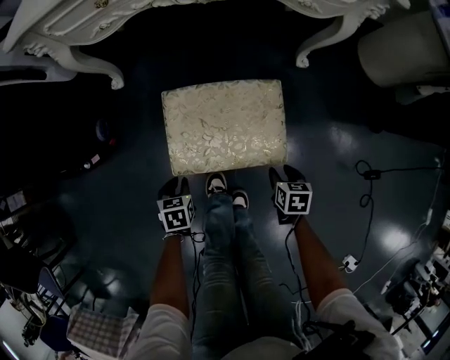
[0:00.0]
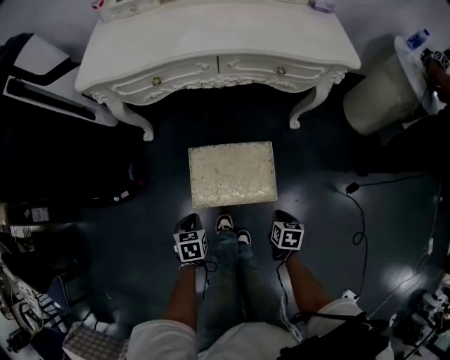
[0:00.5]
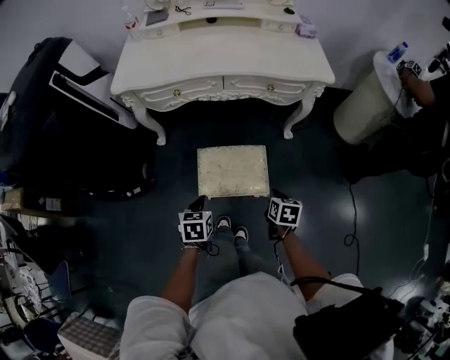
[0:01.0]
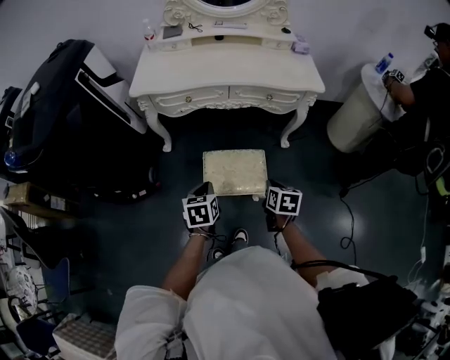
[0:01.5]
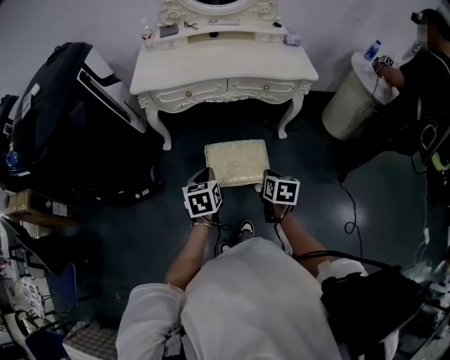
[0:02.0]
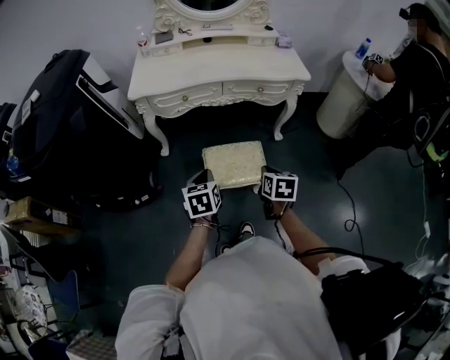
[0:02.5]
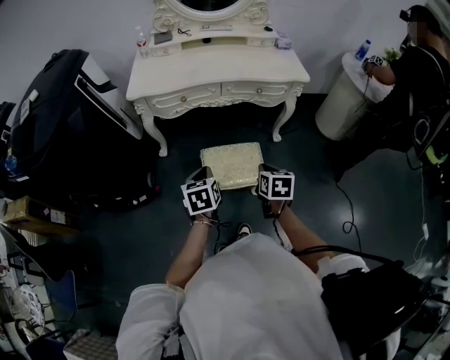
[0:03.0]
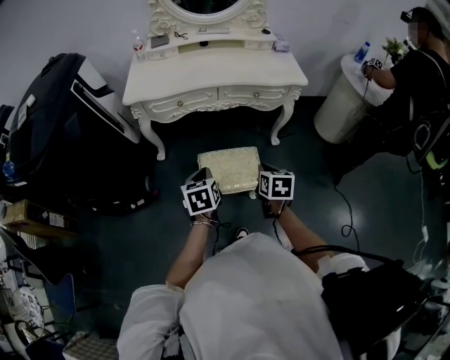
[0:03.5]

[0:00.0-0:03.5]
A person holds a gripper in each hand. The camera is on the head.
0:00.0 to 0:02.0: Both grippers travel together upward, approximately 50 cm. The left gripper changes its angle by approximately 30 degrees. Meanwhile the right gripper closes up.
0:02.0 to 0:03.5: There are only small adjustments of the grippers.

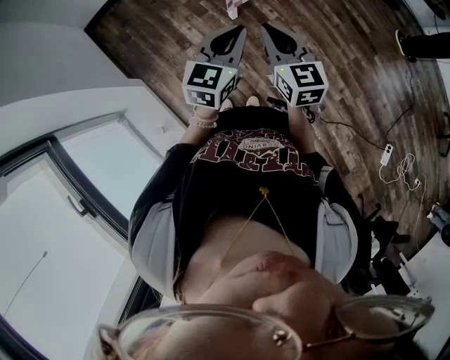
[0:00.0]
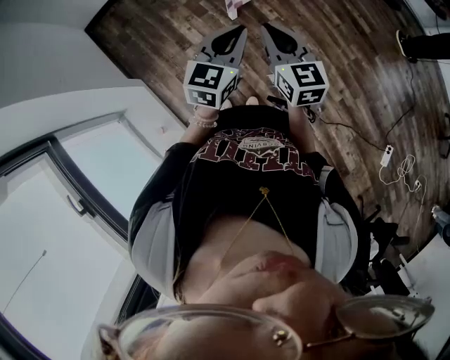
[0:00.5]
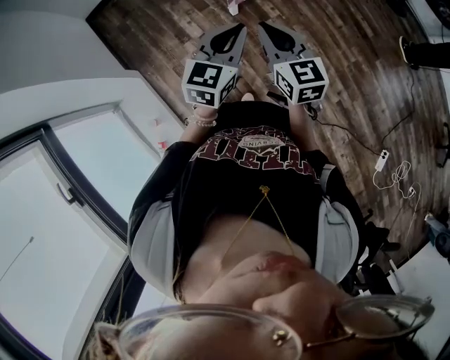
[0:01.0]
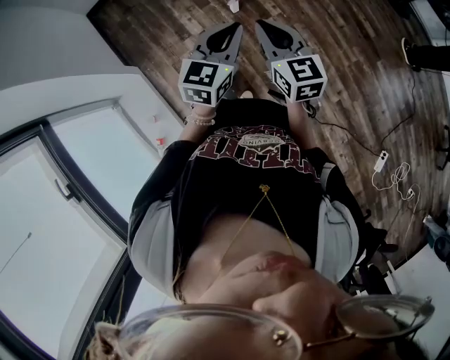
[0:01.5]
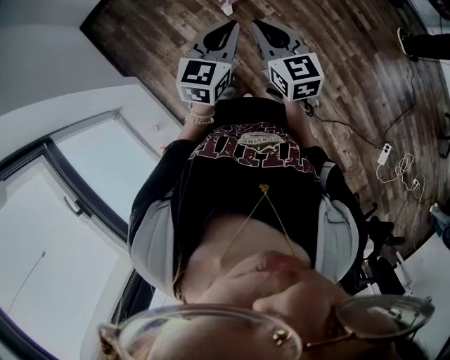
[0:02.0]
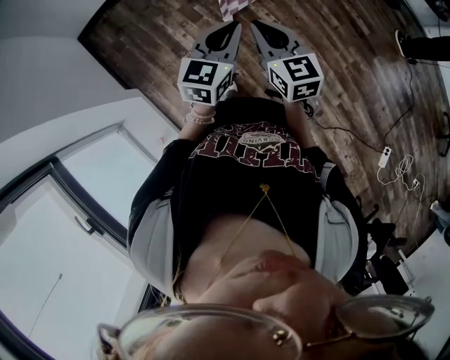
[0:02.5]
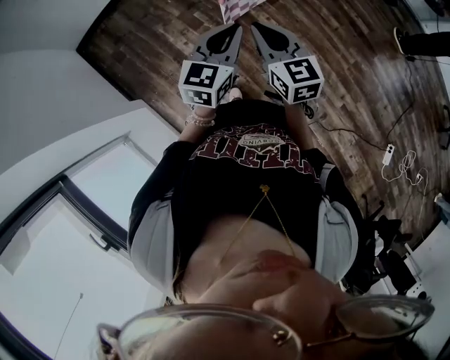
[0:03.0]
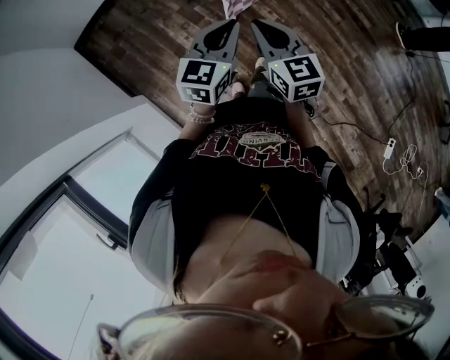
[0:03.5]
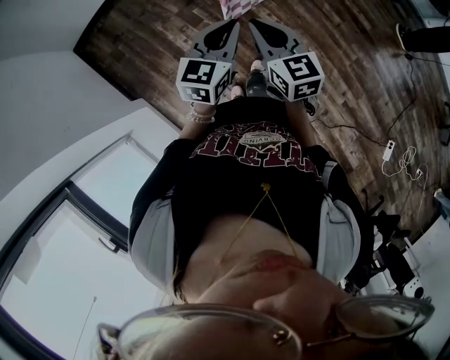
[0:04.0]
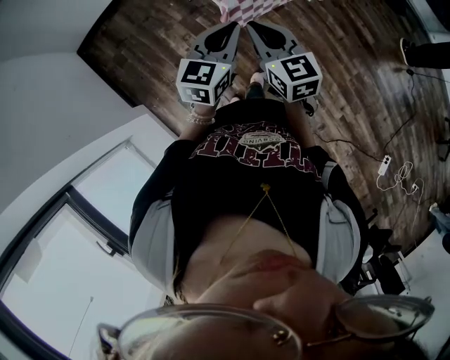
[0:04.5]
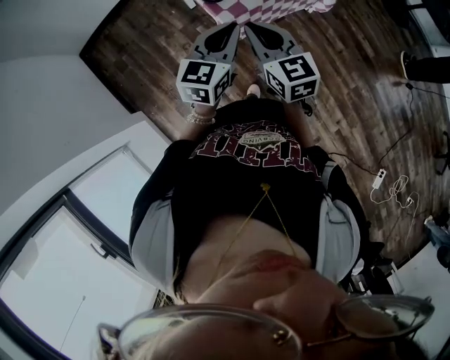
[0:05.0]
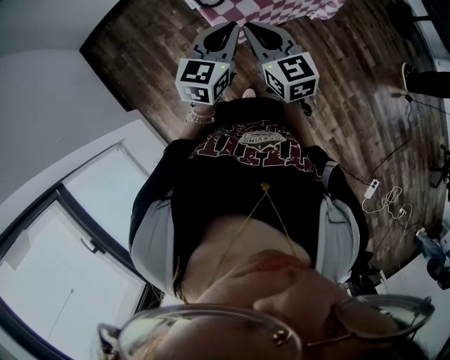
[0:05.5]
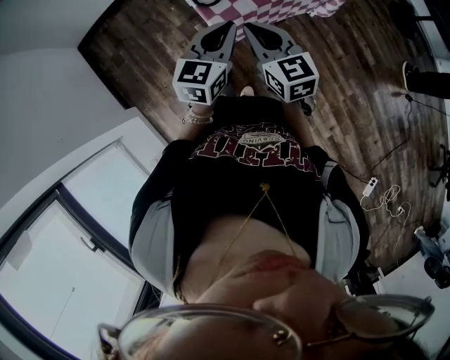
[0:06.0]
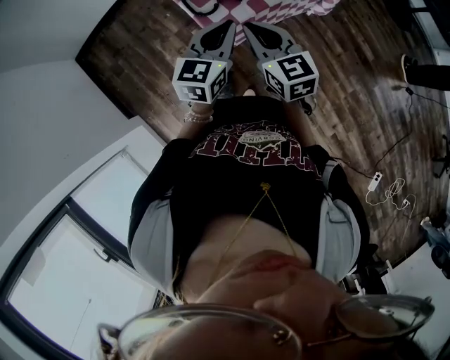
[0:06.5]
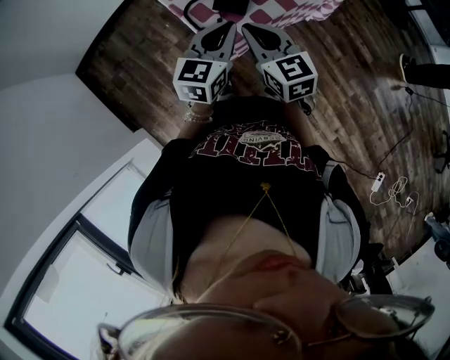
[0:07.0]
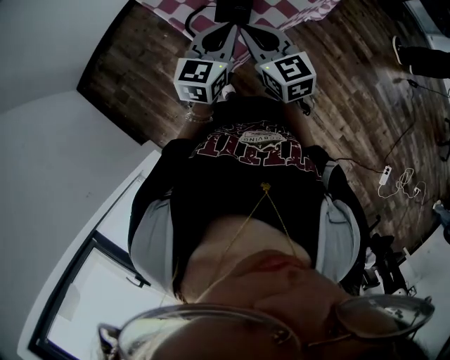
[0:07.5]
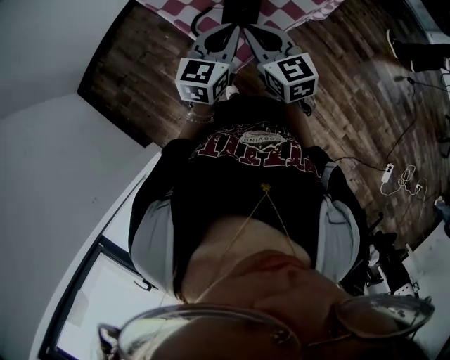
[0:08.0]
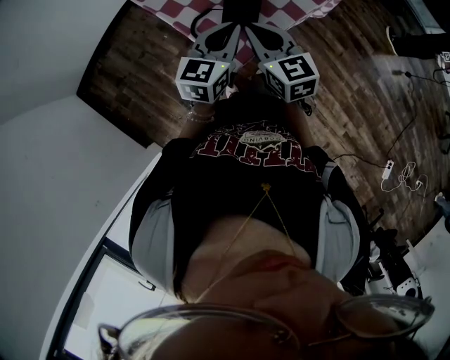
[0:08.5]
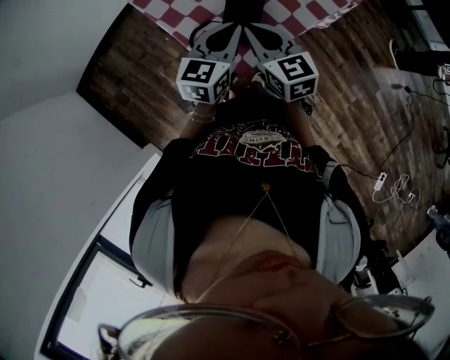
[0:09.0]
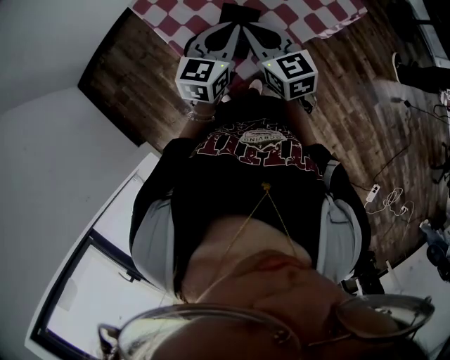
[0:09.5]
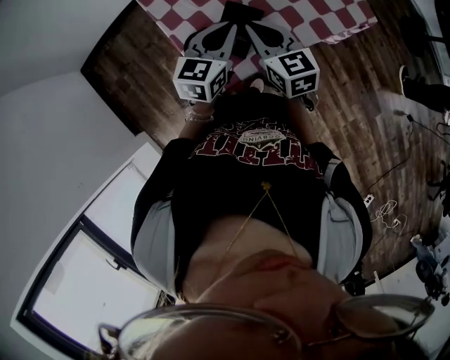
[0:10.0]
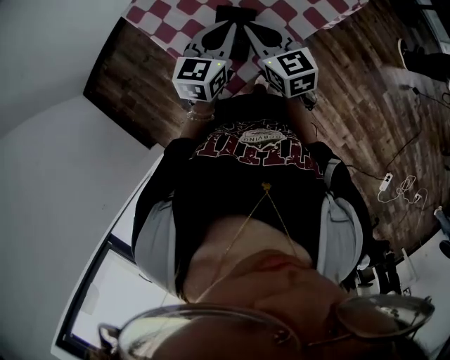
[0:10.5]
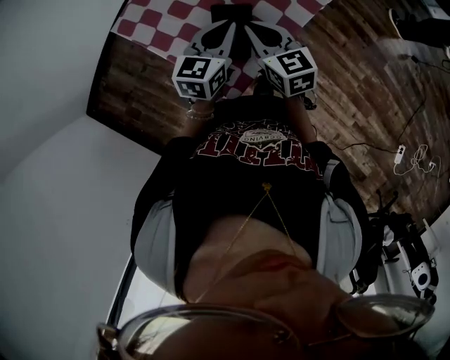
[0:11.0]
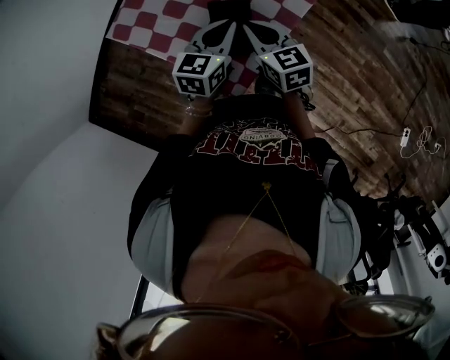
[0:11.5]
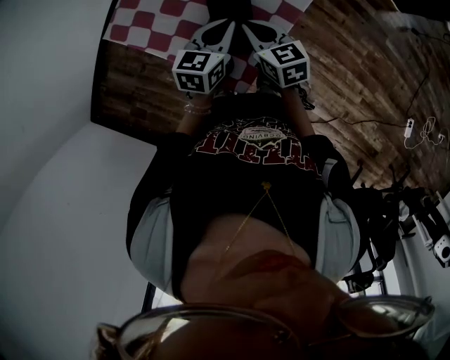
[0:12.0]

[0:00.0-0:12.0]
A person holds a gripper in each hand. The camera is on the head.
0:00.0 to 0:02.0: The grippers stay close to where they were, moving slightly.
0:02.0 to 0:04.0: The two grippers go about 20 cm forward and to the left.
0:04.0 to 0:06.0: The grippers both shift forward and to the right by some 20 cm.
0:06.0 to 0:08.0: Both grippers move forward, approximately 15 cm.
0:08.0 to 0:10.0: Both grippers travel together forward, about 10 cm.
0:10.0 to 0:12.0: Both grippers travel together downward, roughly 10 cm. The right gripper swivels approximately 30 degrees. The left gripper changes its angle by some 30 degrees.

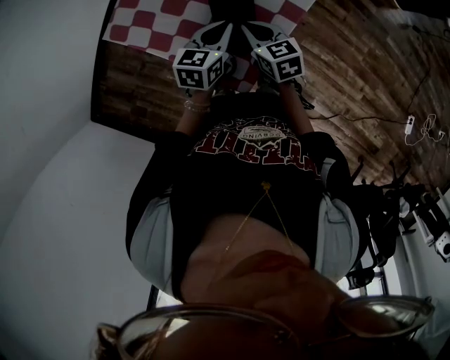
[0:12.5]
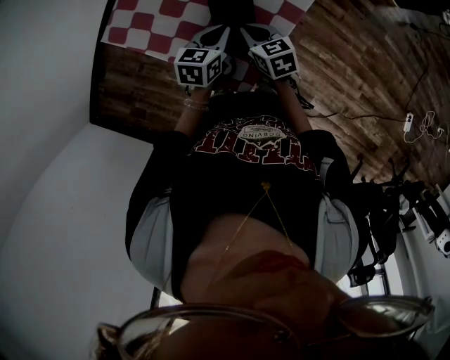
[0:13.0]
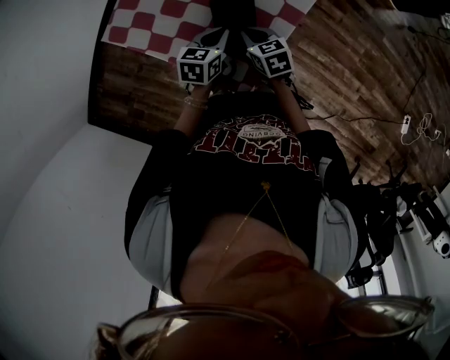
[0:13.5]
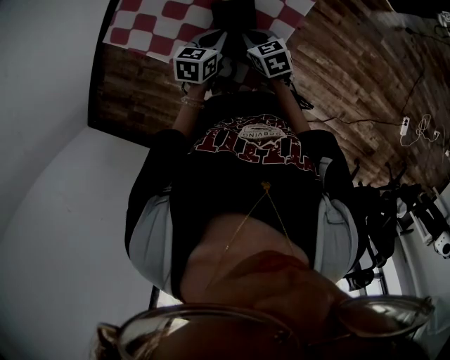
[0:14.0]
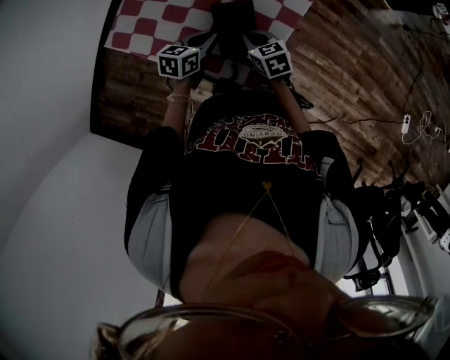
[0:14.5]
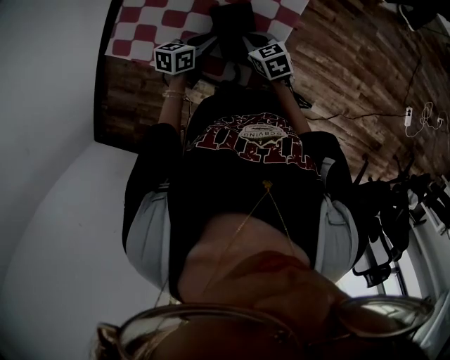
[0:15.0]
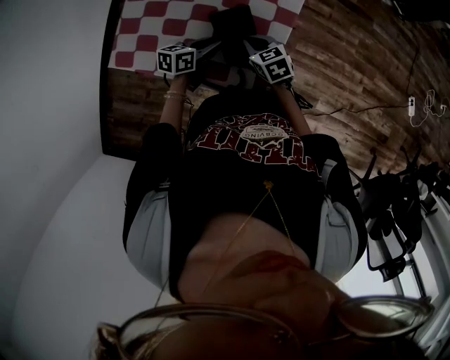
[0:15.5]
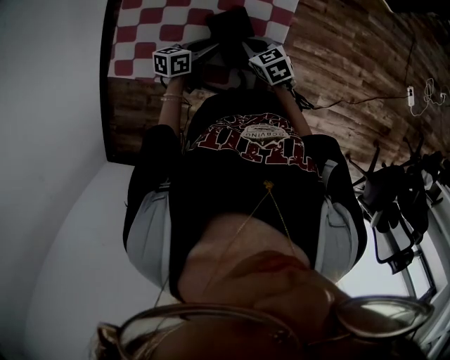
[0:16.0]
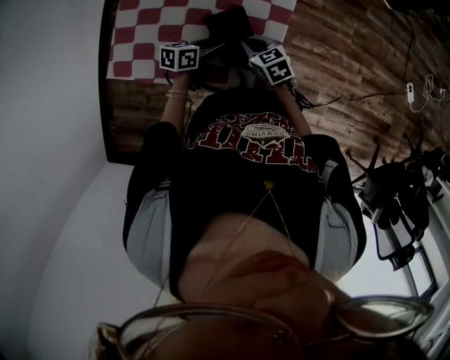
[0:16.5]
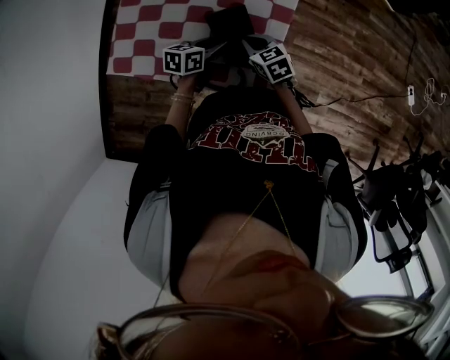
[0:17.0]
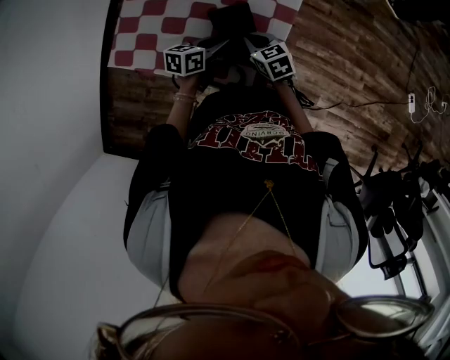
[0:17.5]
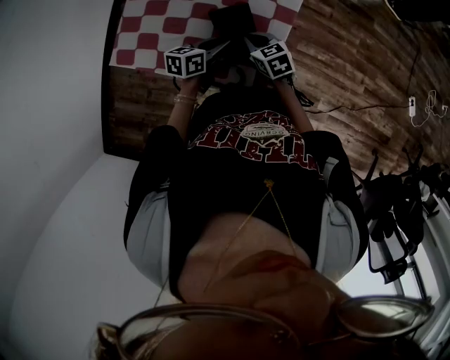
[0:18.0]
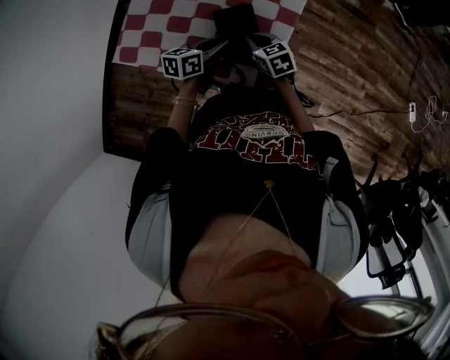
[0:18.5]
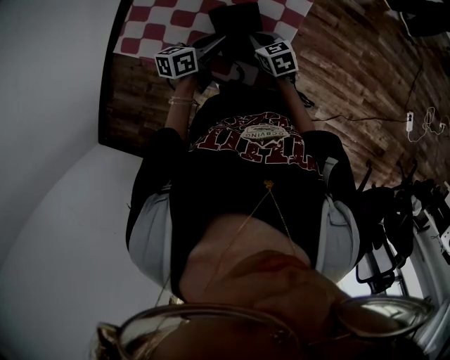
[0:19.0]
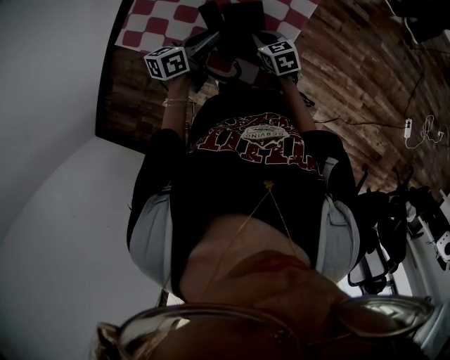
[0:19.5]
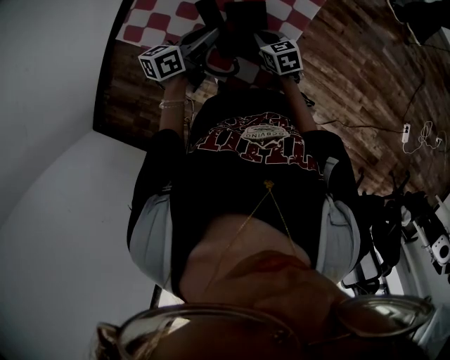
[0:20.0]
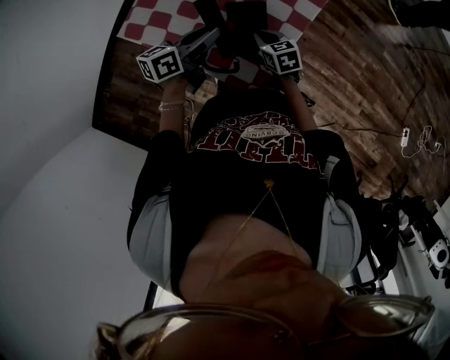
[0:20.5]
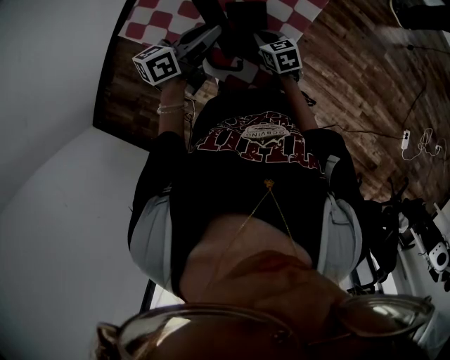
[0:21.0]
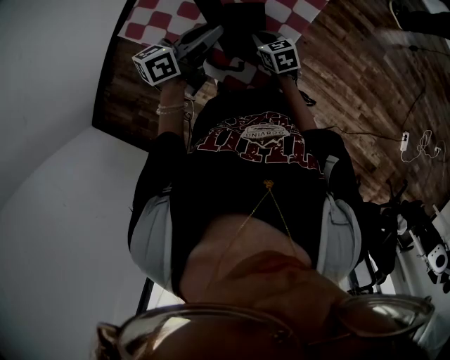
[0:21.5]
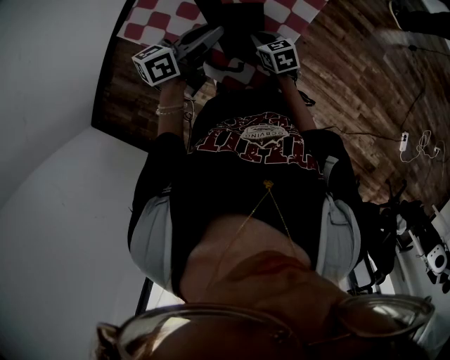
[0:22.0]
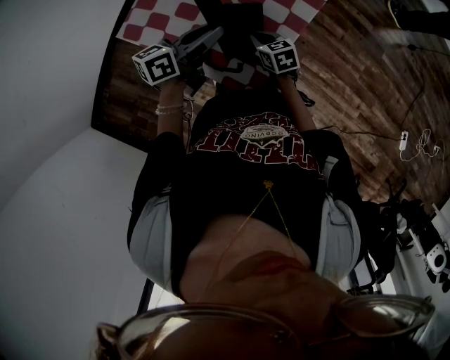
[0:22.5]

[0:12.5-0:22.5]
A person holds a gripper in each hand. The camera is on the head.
0:12.5 to 0:14.5: Both grippers travel together downward, approximately 5 cm.
0:14.5 to 0:16.5: The left gripper swivels roughly 20 degrees, and opens its fingers.
0:16.5 to 0:18.5: The left gripper is displaced upward by roughly 5 cm.
0:18.5 to 0:20.5: The left gripper is displaced upward by approximately 10 cm, and rotates roughly 20 degrees.
0:20.5 to 0:22.5: The grippers make only small movements.

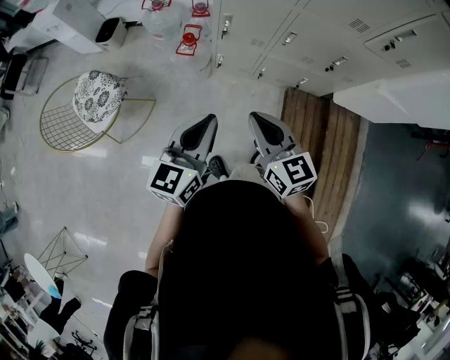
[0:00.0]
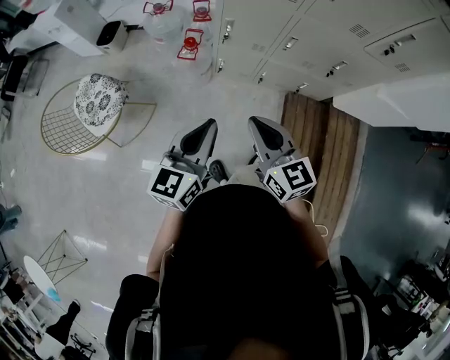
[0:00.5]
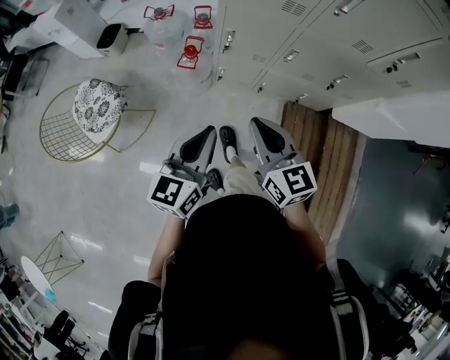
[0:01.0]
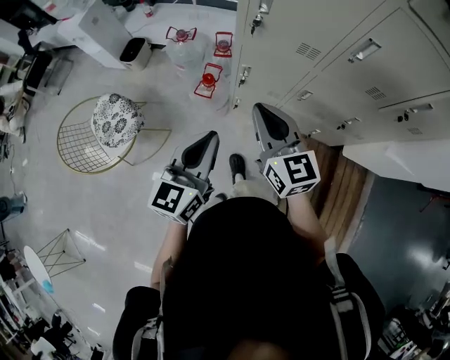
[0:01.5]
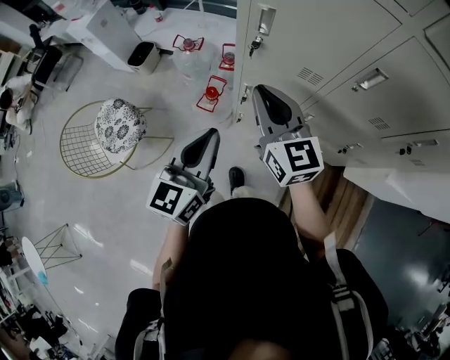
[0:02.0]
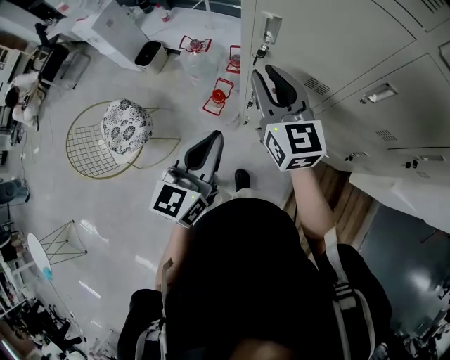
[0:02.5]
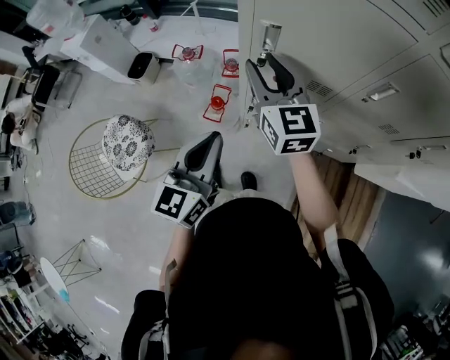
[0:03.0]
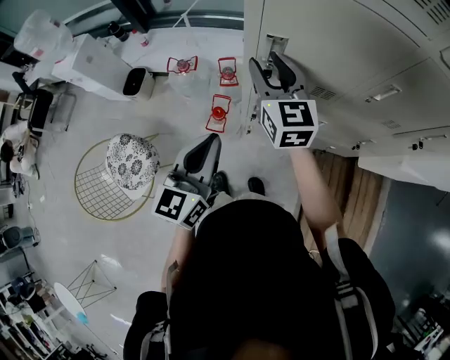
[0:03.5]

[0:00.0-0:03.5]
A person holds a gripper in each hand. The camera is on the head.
0:00.0 to 0:02.0: Both grippers move forward, about 25 cm.
0:02.0 to 0:03.5: The left gripper goes roughly 10 cm forward and to the left. The right gripper is displaced forward by roughly 15 cm, and opens.
